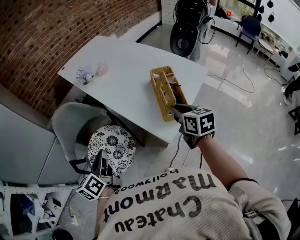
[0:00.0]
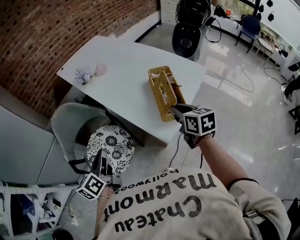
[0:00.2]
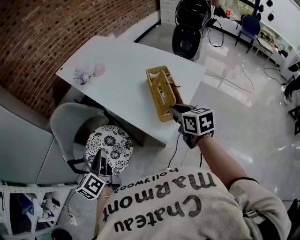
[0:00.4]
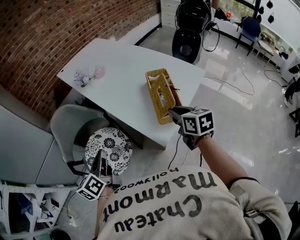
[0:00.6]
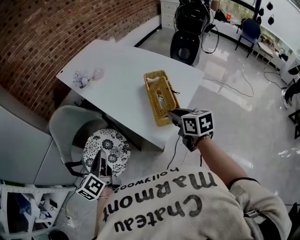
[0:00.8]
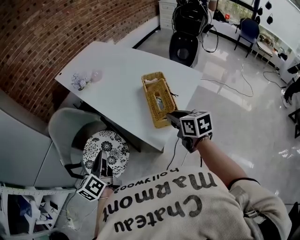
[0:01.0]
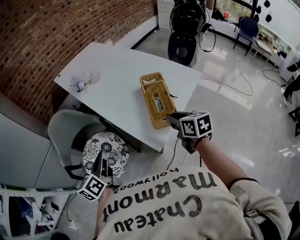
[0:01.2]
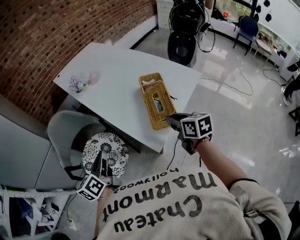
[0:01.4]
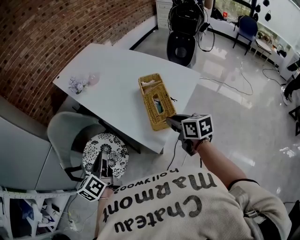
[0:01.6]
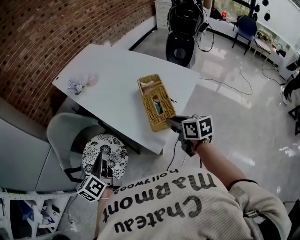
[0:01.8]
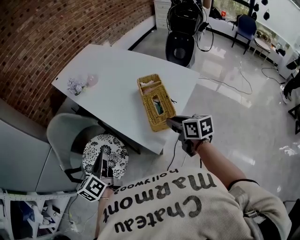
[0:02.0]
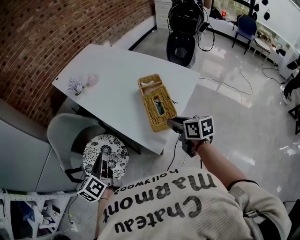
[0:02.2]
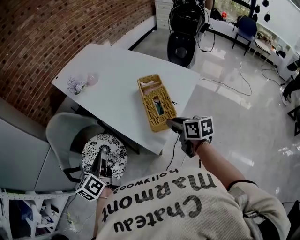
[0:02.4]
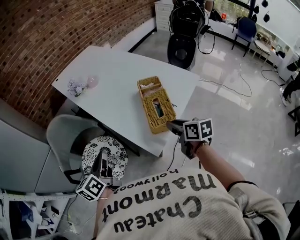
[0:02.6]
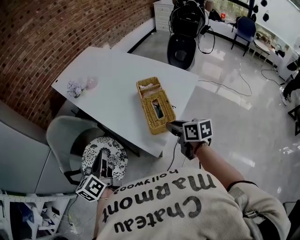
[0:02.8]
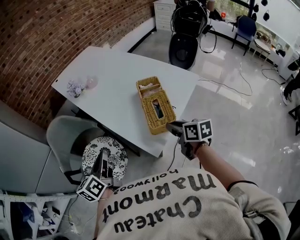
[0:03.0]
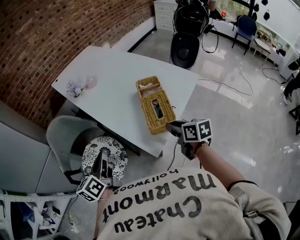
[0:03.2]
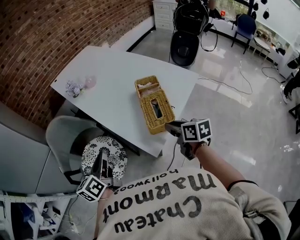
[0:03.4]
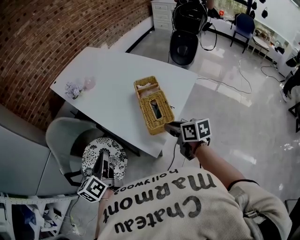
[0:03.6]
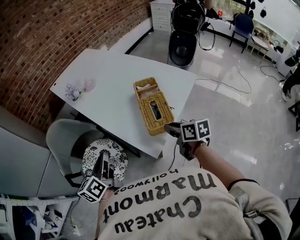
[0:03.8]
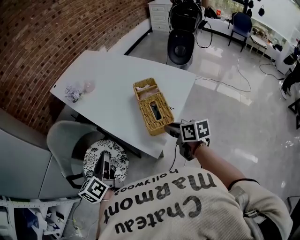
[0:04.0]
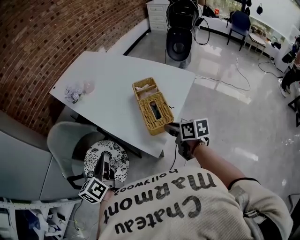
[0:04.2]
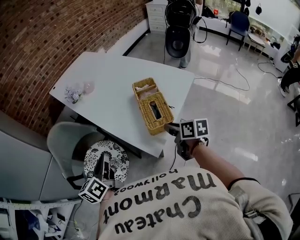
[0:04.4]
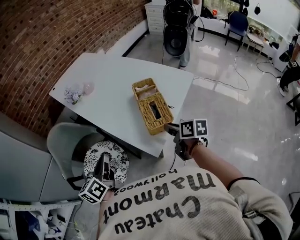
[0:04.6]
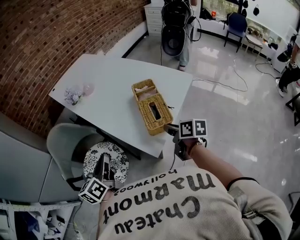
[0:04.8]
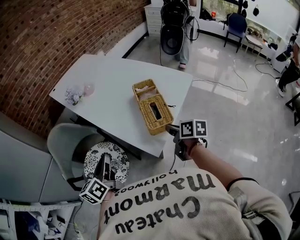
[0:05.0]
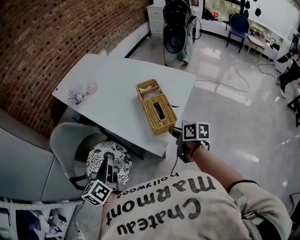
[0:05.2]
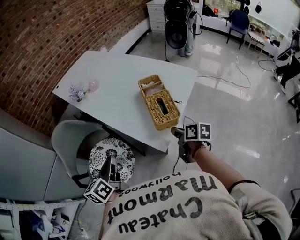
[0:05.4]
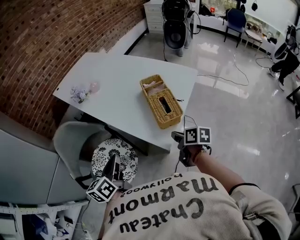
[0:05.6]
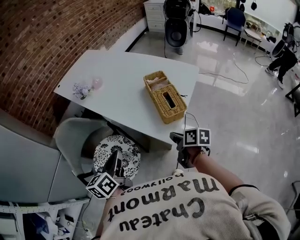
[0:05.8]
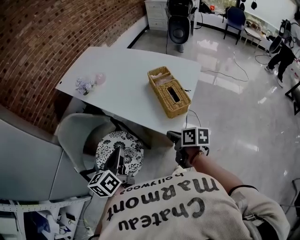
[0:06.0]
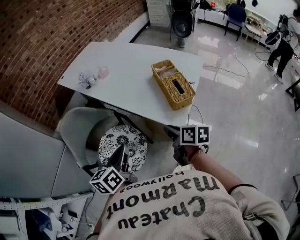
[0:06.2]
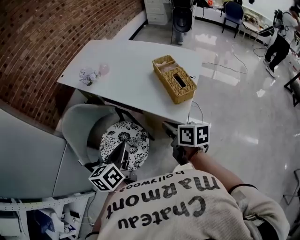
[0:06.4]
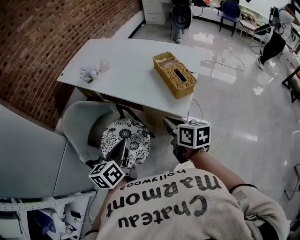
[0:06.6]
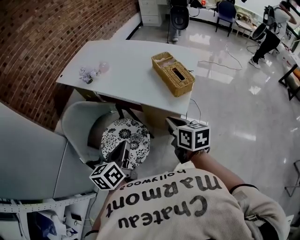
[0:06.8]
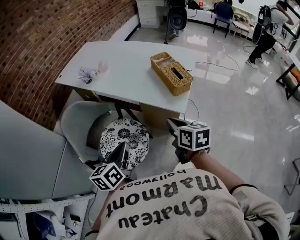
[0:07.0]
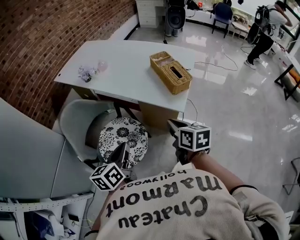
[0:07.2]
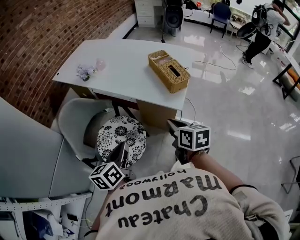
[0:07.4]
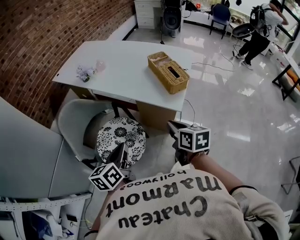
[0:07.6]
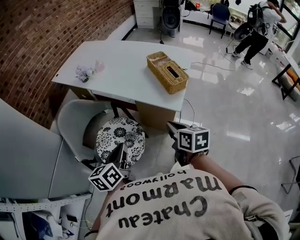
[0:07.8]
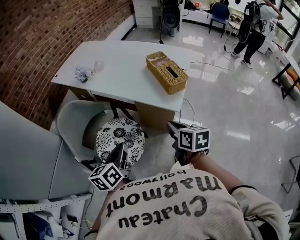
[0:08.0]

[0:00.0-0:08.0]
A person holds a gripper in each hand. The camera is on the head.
0:00.0 to 0:01.6: The grippers both shift to the right by roughly 5 cm.
0:01.6 to 0:03.2: The grippers move only a little.
0:03.2 to 0:04.8: The grippers make only small movements.
0:04.8 to 0:06.4: The left gripper heads to the left and backward, covering approximately 10 cm. Meanwhile the right gripper travels to the left and backward by about 25 cm.
0:06.4 to 0:08.0: Both grippers move backward, roughly 10 cm.

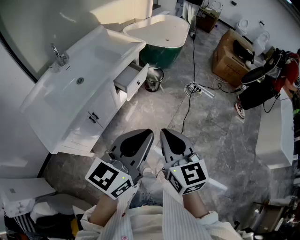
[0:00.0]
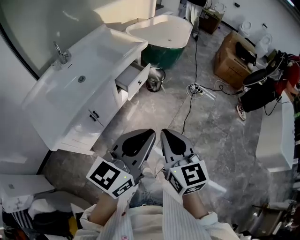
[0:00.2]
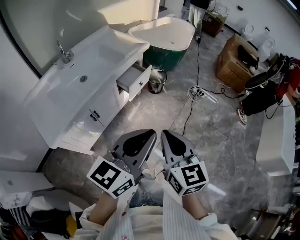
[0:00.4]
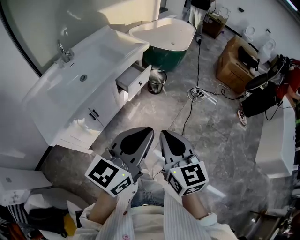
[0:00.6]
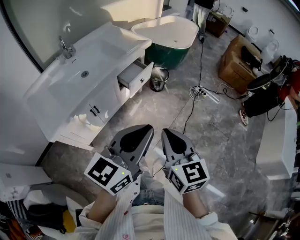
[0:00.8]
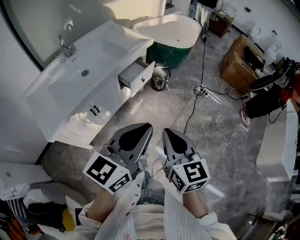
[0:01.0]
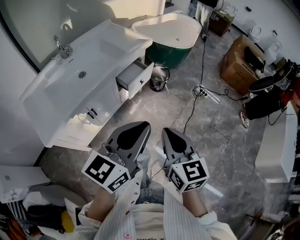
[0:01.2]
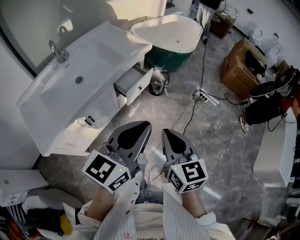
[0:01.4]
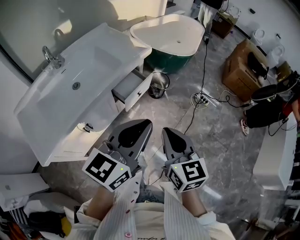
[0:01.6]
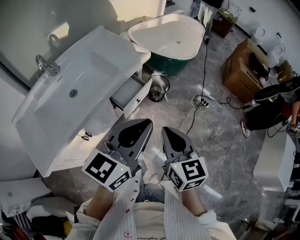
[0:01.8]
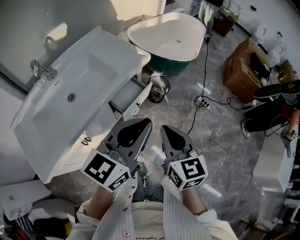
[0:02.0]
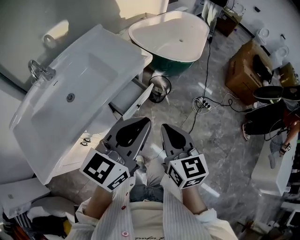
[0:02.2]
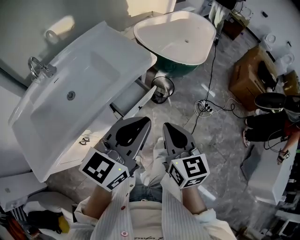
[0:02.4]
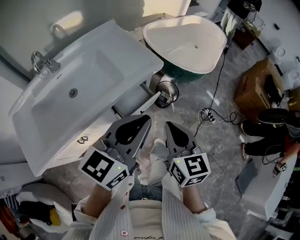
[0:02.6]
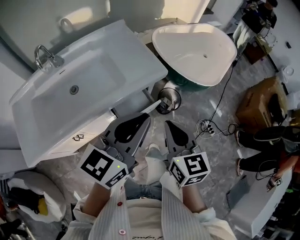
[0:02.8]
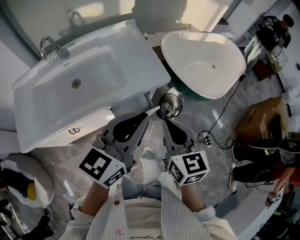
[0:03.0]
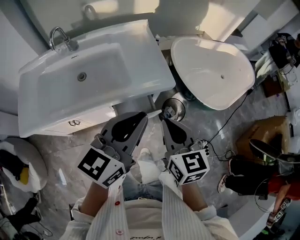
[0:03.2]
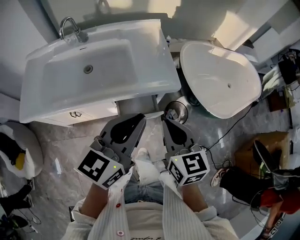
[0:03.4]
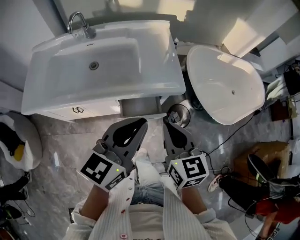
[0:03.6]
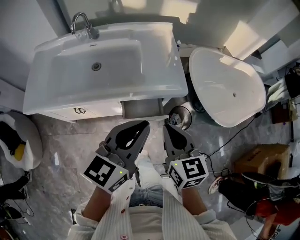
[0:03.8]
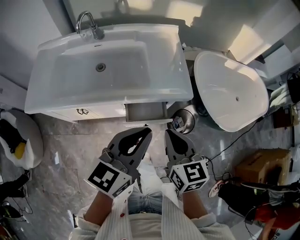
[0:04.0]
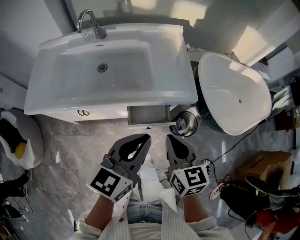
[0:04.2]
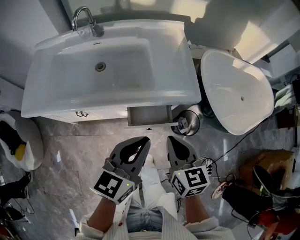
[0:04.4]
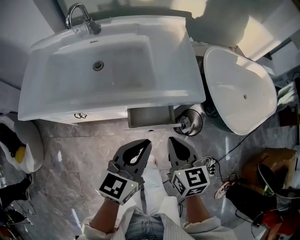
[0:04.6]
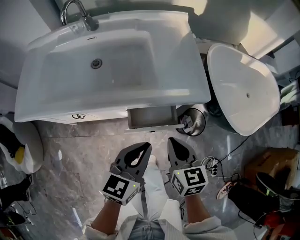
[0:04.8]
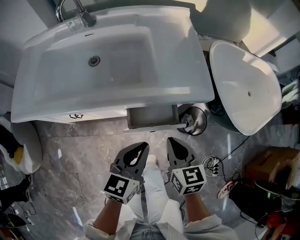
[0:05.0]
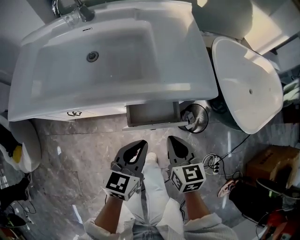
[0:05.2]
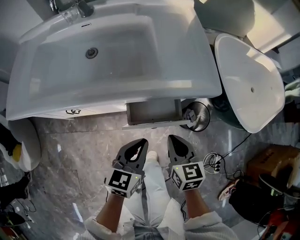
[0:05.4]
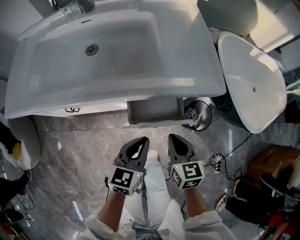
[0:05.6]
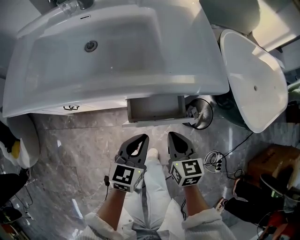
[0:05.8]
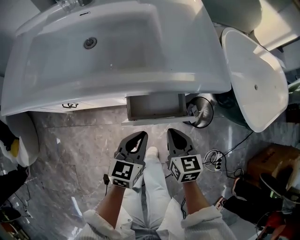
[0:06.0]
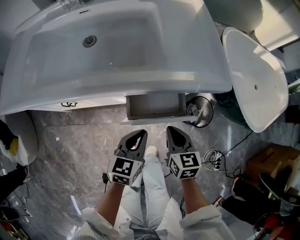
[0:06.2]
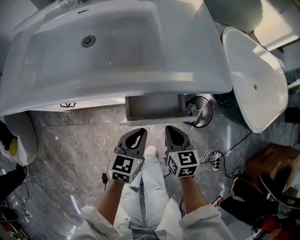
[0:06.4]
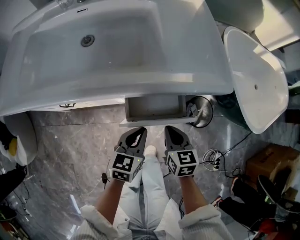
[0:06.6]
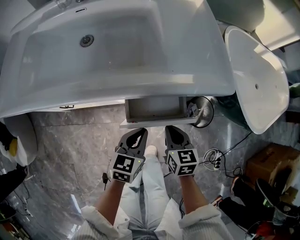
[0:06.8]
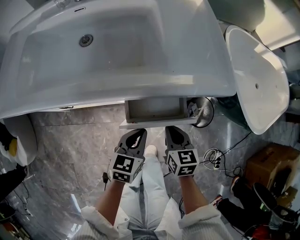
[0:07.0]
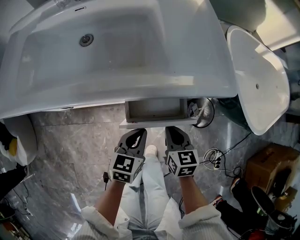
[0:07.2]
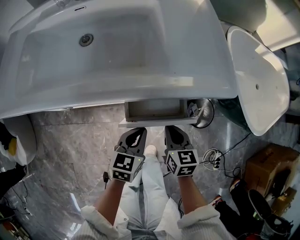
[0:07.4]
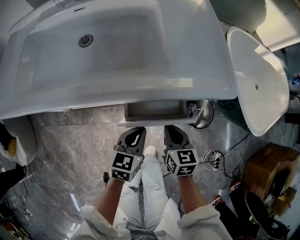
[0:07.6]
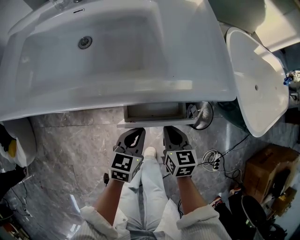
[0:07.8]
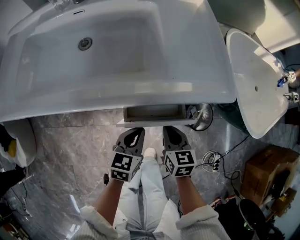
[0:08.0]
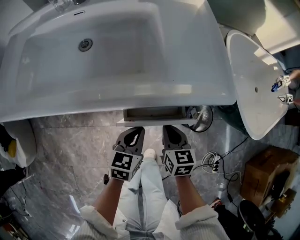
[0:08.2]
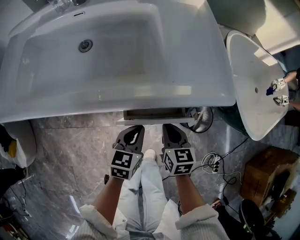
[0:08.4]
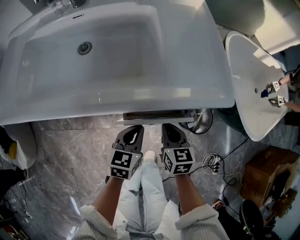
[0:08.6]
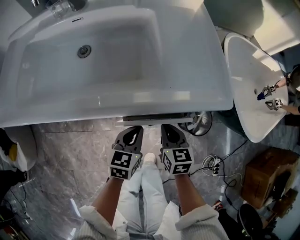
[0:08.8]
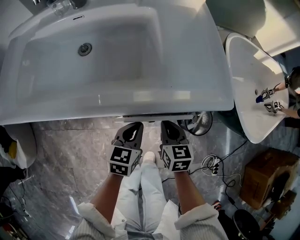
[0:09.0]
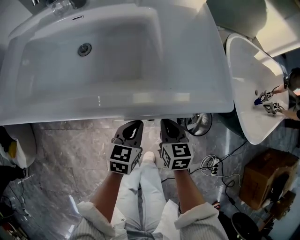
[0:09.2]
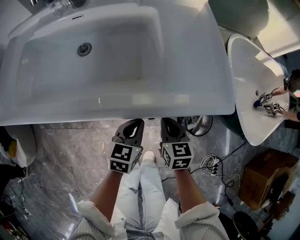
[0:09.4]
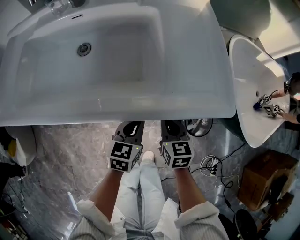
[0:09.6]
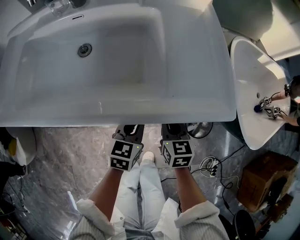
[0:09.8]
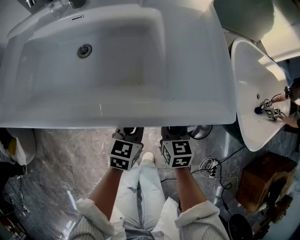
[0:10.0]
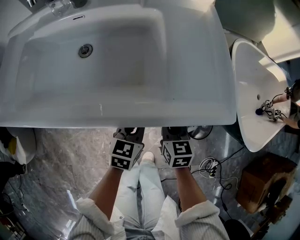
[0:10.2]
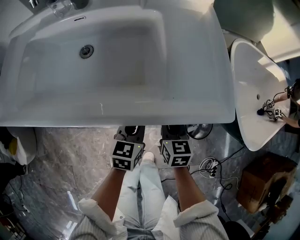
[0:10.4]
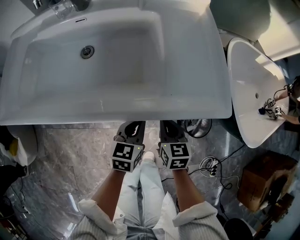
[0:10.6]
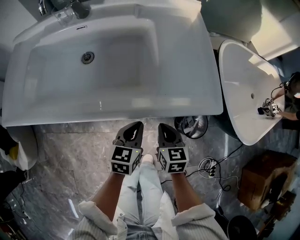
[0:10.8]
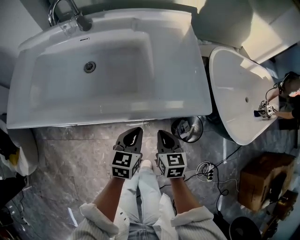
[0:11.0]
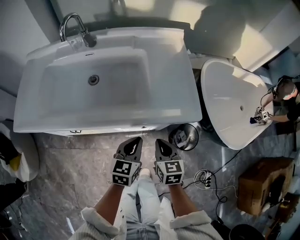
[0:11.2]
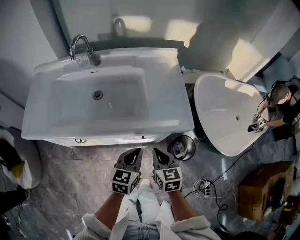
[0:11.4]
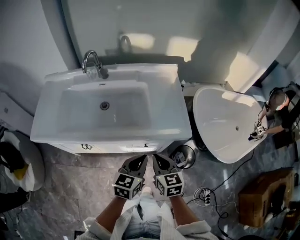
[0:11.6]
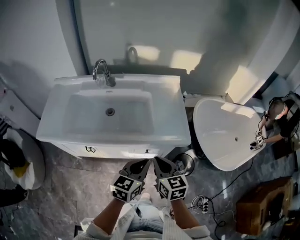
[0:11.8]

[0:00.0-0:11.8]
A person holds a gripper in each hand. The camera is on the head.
0:00.0 to 0:01.4: The grippers both shift forward by some 10 cm.
0:01.4 to 0:03.0: The grippers both shift forward by roughly 35 cm. The right gripper changes its angle by approximately 20 degrees; the left gripper turns by approximately 20 degrees.
0:03.0 to 0:04.4: The two grippers go some 10 cm downward. The left gripper swivels some 30 degrees. The right gripper rotates approximately 20 degrees.
0:04.4 to 0:06.0: Both grippers travel together downward, roughly 25 cm.
0:06.0 to 0:07.4: The left gripper moves roughly 5 cm. Meanwhile the right gripper moves about 5 cm.
0:07.4 to 0:08.8: The grippers make only small movements.
0:08.8 to 0:10.4: Both grippers travel together forward, roughly 5 cm.
0:10.4 to 0:11.8: The two grippers go some 30 cm upward.

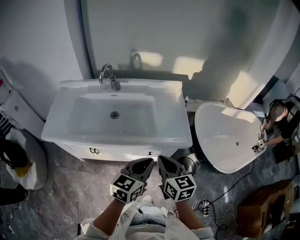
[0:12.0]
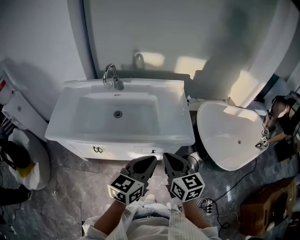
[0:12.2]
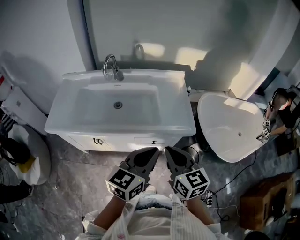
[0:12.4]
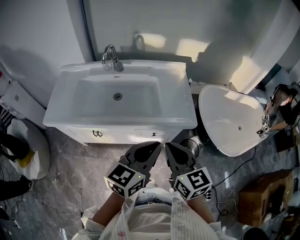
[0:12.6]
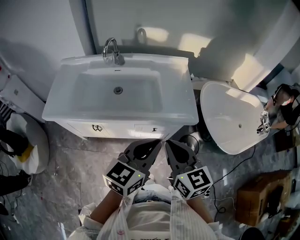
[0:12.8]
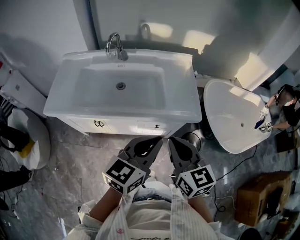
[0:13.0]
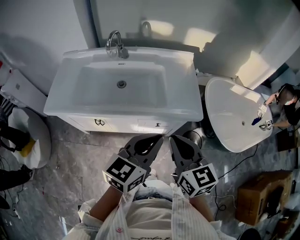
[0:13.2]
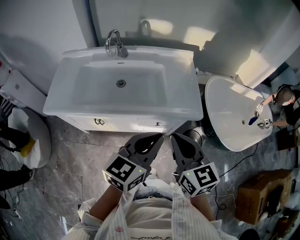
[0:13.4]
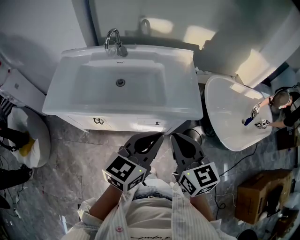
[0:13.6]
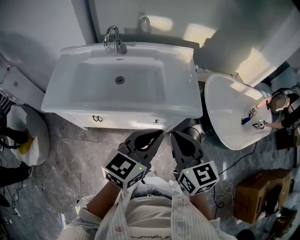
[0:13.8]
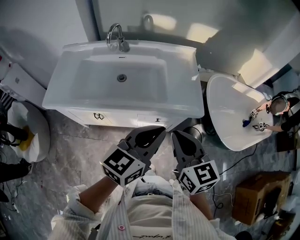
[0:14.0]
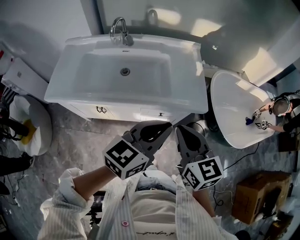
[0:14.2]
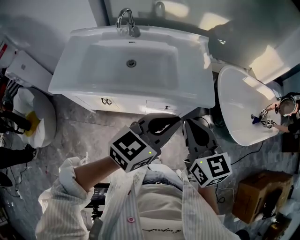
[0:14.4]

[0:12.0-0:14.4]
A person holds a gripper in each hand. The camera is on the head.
0:12.0 to 0:13.2: The two grippers go approximately 5 cm upward.
0:13.2 to 0:14.4: The grippers make only small movements.

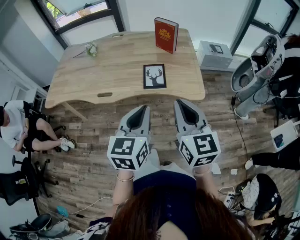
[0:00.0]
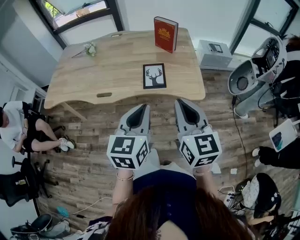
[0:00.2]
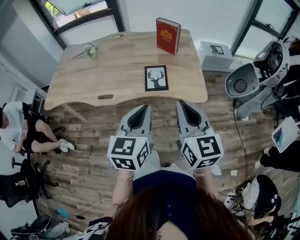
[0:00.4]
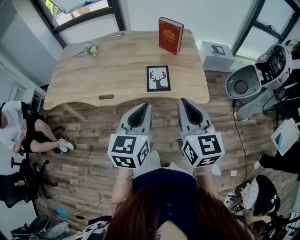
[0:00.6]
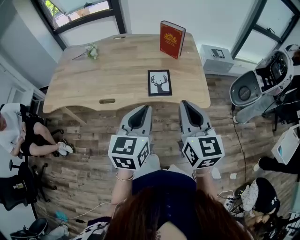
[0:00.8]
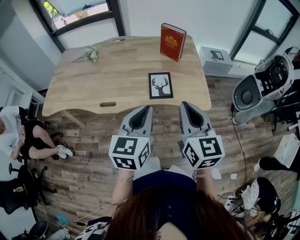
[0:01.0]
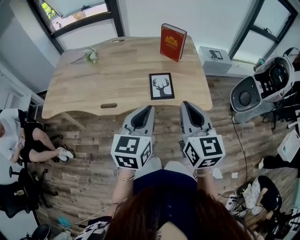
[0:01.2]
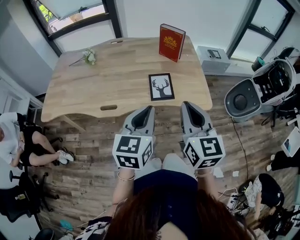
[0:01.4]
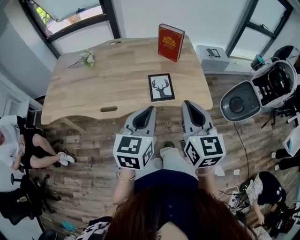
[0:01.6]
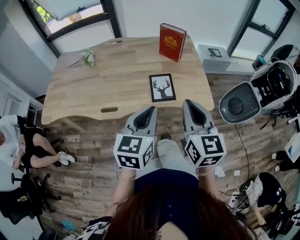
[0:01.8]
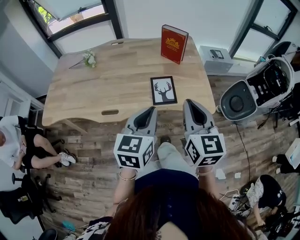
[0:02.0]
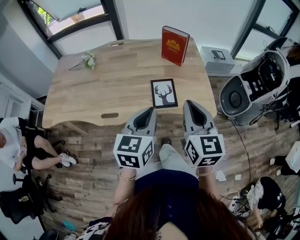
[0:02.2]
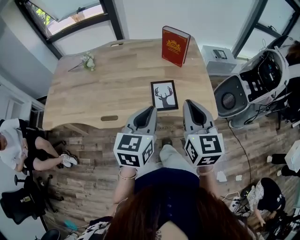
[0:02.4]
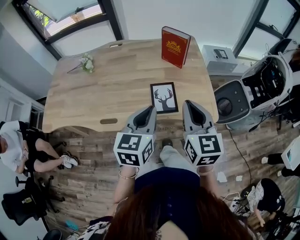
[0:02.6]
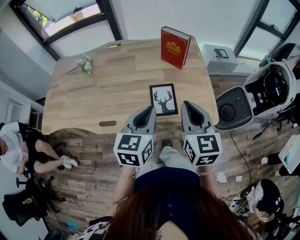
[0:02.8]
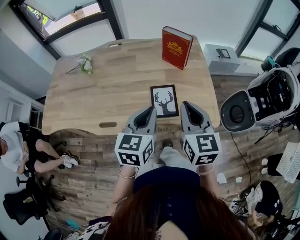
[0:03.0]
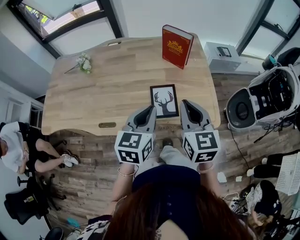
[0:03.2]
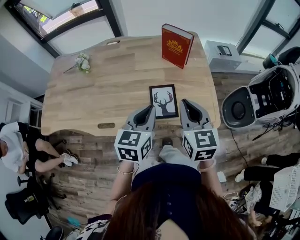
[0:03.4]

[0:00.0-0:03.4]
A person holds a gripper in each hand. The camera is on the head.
0:00.0 to 0:01.6: Both grippers travel together forward and to the left, about 10 cm.
0:01.6 to 0:03.4: The grippers both shift forward by roughly 20 cm.
